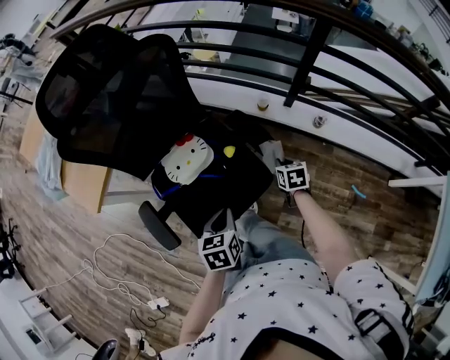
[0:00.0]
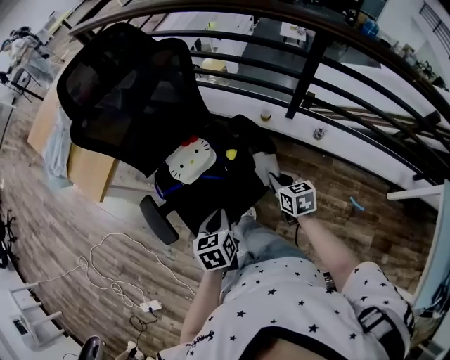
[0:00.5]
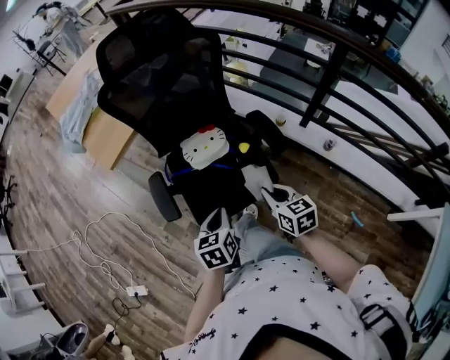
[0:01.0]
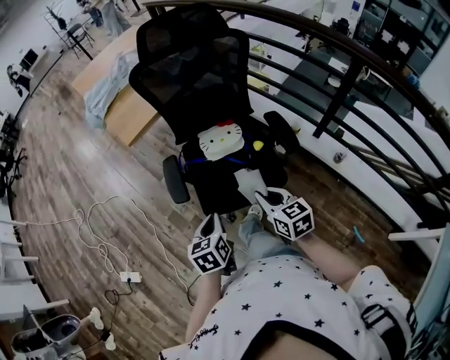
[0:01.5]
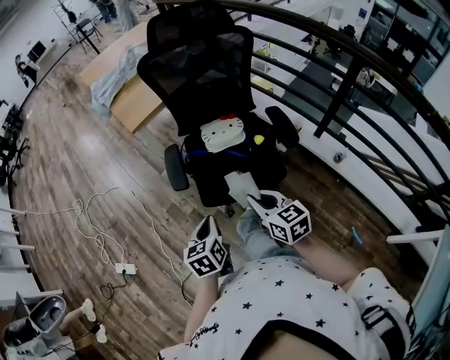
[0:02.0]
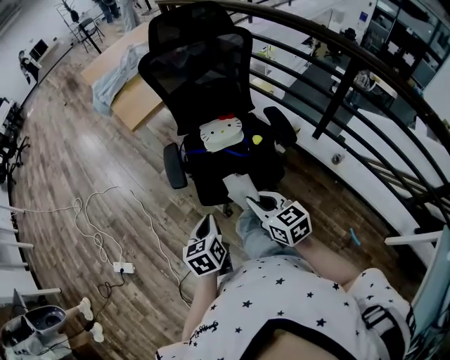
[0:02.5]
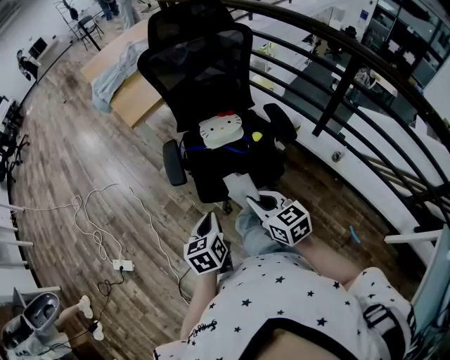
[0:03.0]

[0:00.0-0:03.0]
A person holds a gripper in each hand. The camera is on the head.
0:00.0 to 0:01.5: The left gripper shifts by about 20 cm, and swivels some 30 degrees. Meanwhile the right gripper ends up about 35 cm from where it was, and turns by approximately 50 degrees.
0:01.5 to 0:03.0: Both grippers move backward, approximately 5 cm.

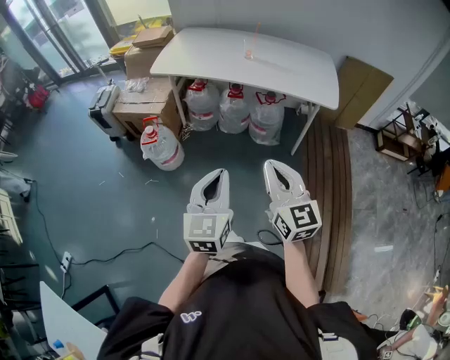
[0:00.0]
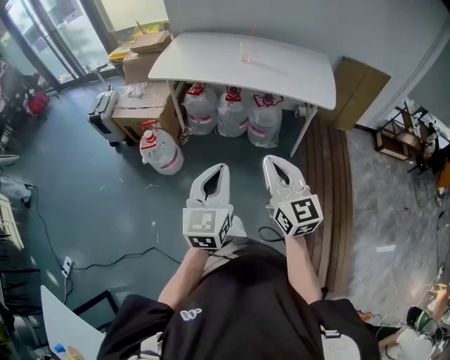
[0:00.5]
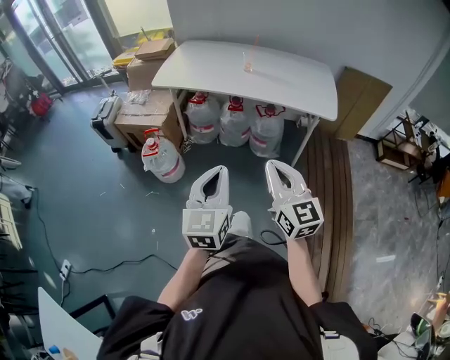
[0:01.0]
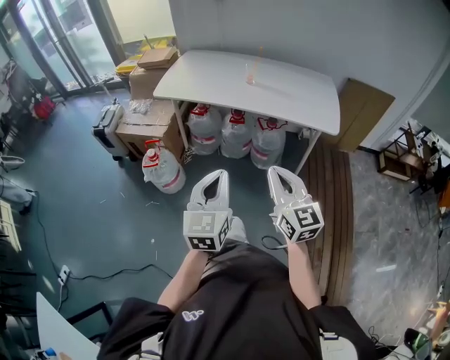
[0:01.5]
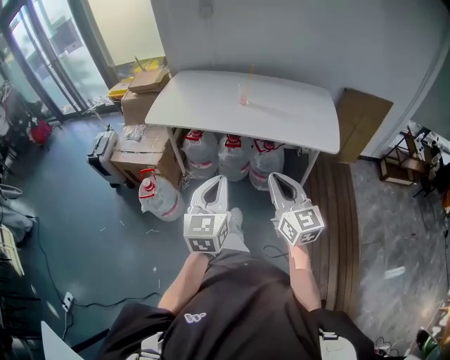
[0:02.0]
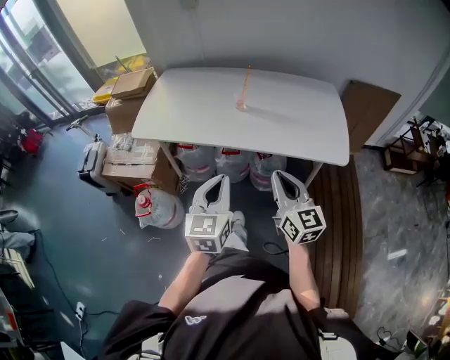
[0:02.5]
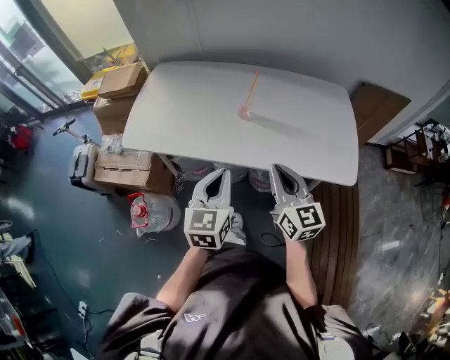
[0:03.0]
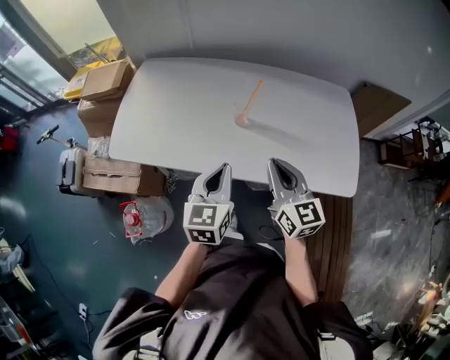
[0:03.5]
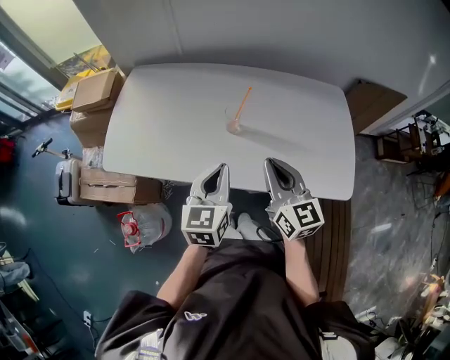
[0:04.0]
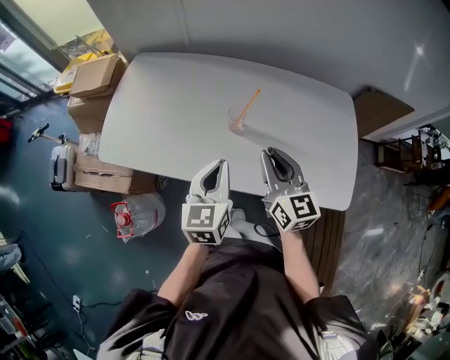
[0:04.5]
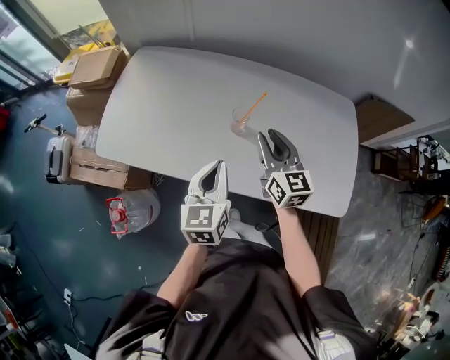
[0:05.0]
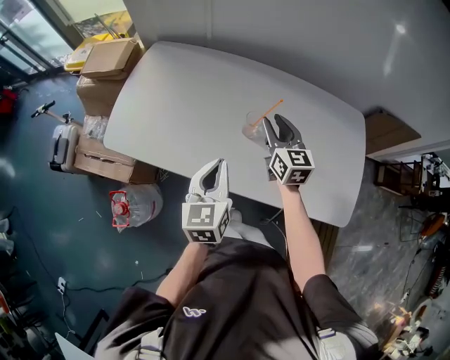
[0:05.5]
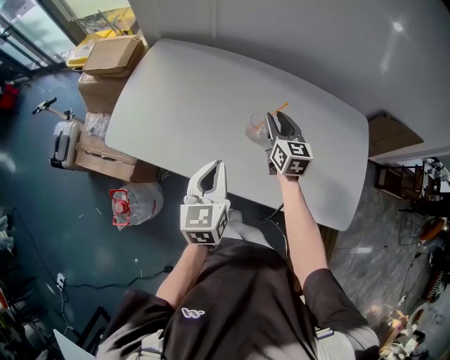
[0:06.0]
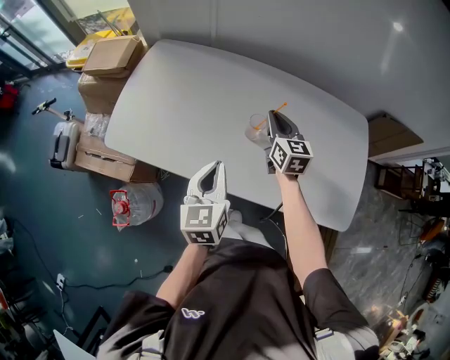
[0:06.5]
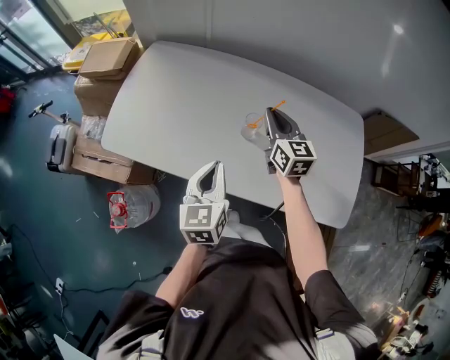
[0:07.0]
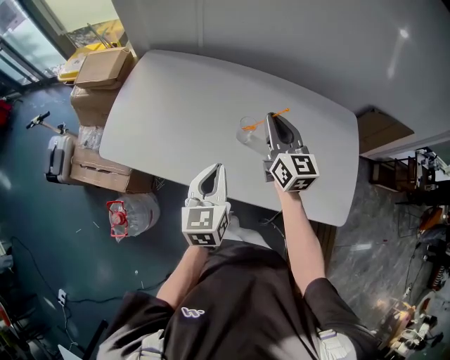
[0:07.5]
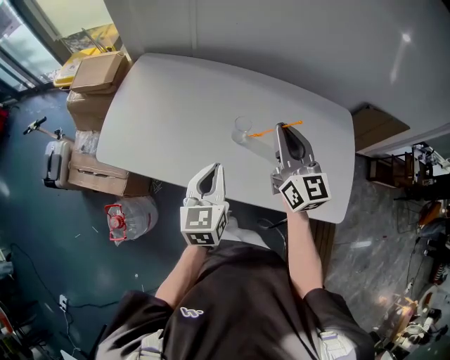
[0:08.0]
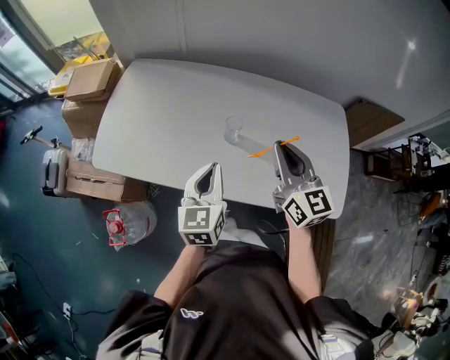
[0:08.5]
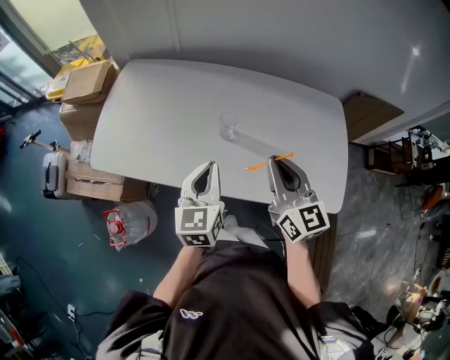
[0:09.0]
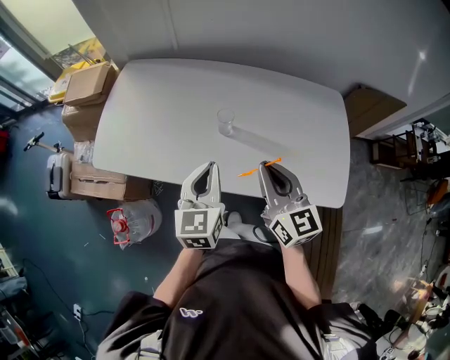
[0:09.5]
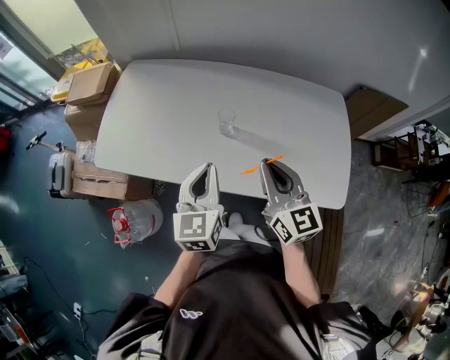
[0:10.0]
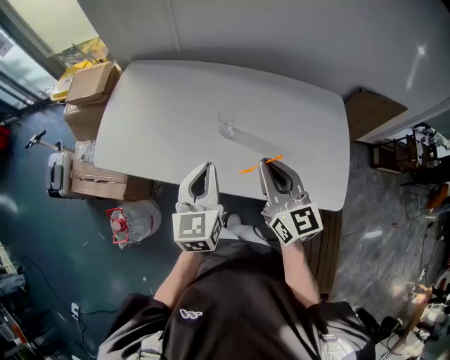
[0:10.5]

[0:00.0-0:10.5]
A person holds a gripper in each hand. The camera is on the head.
0:00.0 to 0:02.0: Both grippers travel together forward, approximately 20 cm.
0:02.0 to 0:04.0: Both grippers are carried forward, some 40 cm.
0:04.0 to 0:06.5: The right gripper goes roughly 25 cm forward and downward, and opens, then closes once more; the left gripper is displaced to the left and forward by about 10 cm.
0:06.5 to 0:08.5: The right gripper goes approximately 20 cm backward and upward.
0:08.5 to 0:10.5: The right gripper heads backward, covering about 5 cm.

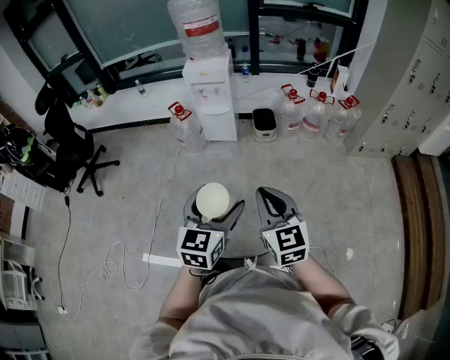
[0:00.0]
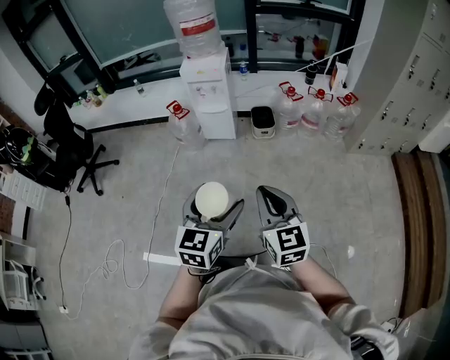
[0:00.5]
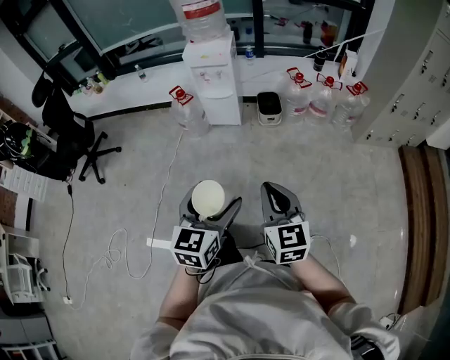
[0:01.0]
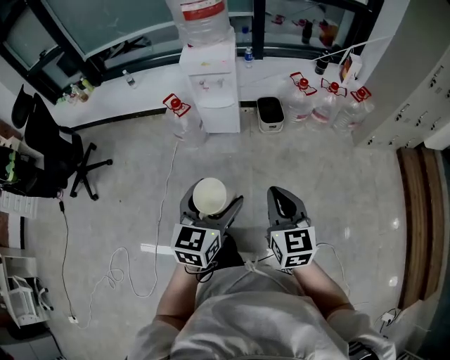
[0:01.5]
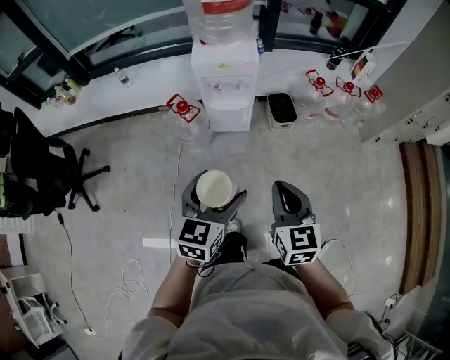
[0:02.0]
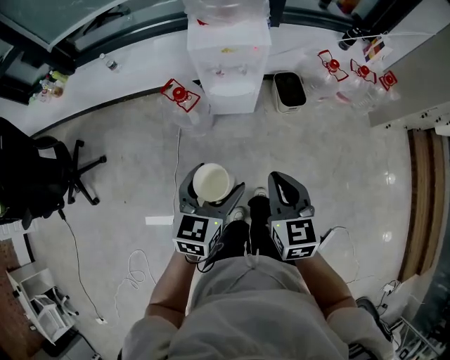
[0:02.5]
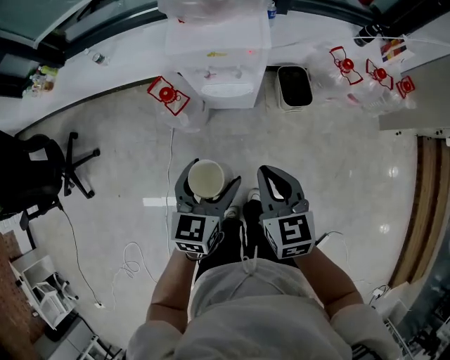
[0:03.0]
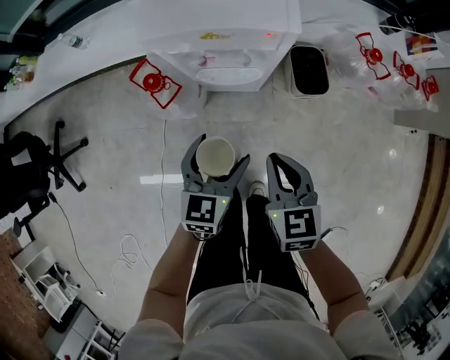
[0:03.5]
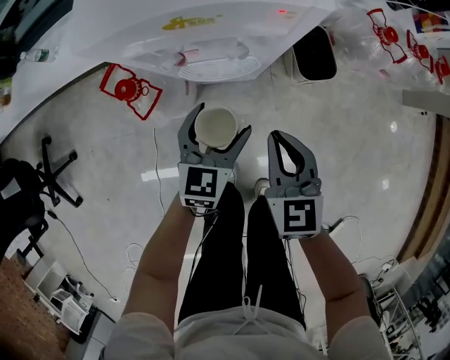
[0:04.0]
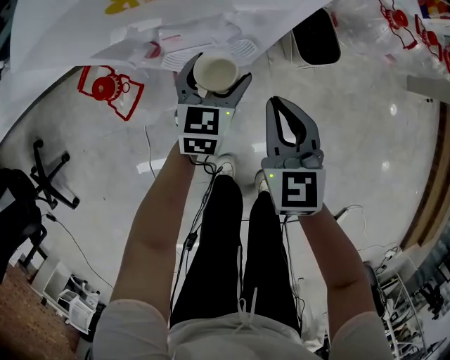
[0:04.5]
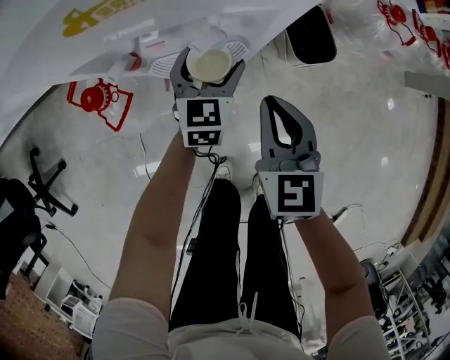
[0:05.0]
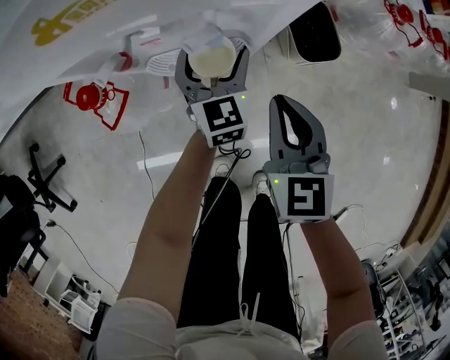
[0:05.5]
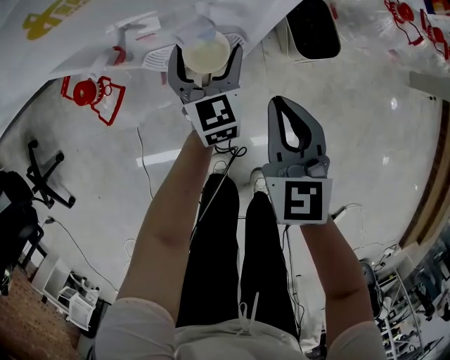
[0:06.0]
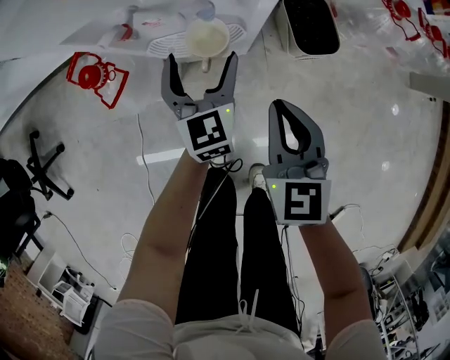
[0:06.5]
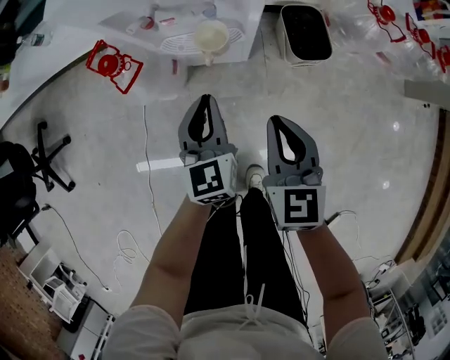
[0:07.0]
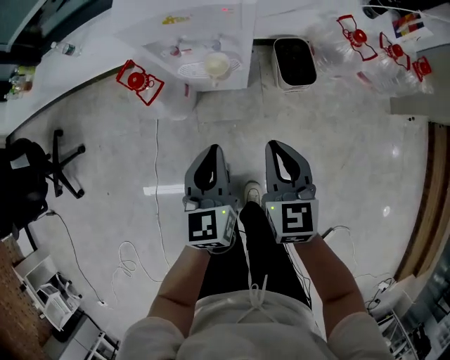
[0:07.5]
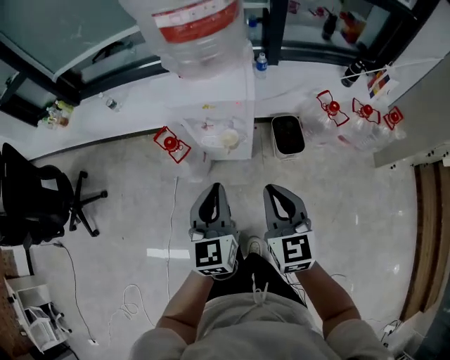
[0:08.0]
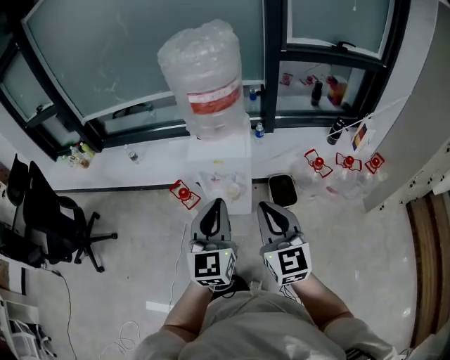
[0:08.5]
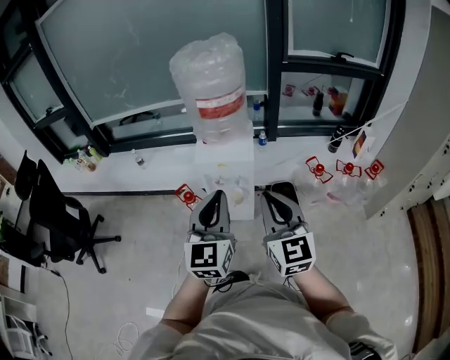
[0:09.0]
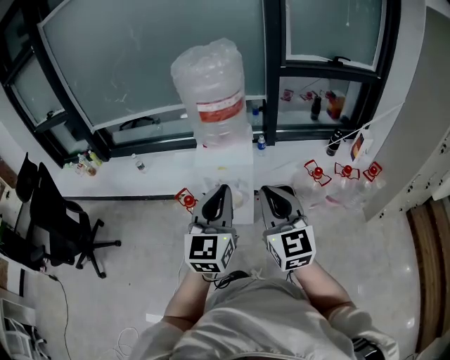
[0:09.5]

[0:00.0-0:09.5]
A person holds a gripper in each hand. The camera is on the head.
0:00.0 to 0:02.0: Both grippers travel together forward and to the left, roughly 35 cm.
0:02.0 to 0:04.0: The grippers both shift forward and downward by about 50 cm.
0:04.0 to 0:05.5: The right gripper shifts about 10 cm forward and downward. The left gripper is displaced forward and downward by roughly 15 cm, and turns by about 20 degrees.
0:05.5 to 0:07.5: The left gripper shifts about 35 cm backward and upward, and closes up; the right gripper is displaced backward and upward by some 20 cm.
0:07.5 to 0:09.5: The two grippers go some 40 cm upward. The right gripper tilts its fingers about 30 degrees upward; the left gripper rotates roughly 30 degrees.

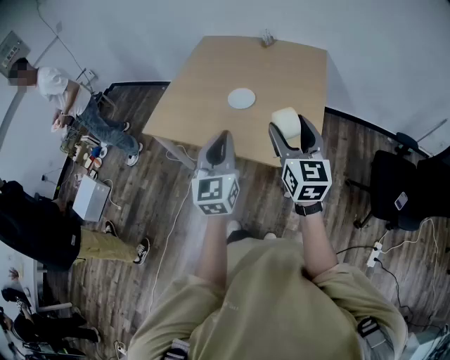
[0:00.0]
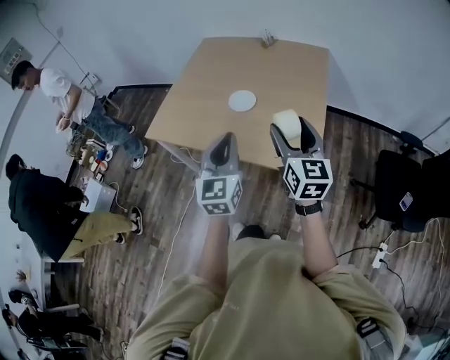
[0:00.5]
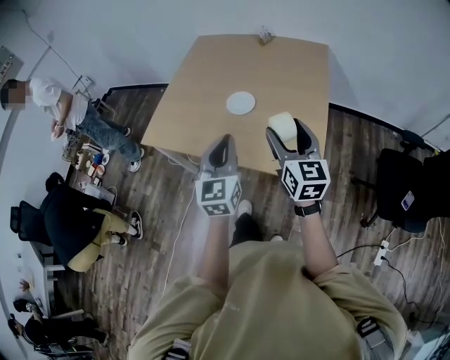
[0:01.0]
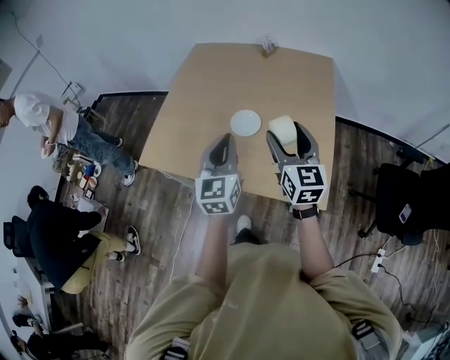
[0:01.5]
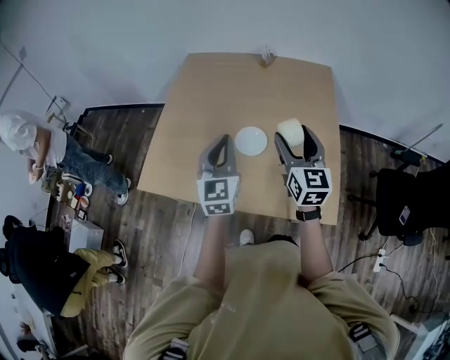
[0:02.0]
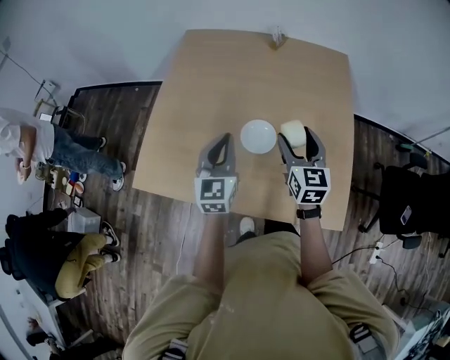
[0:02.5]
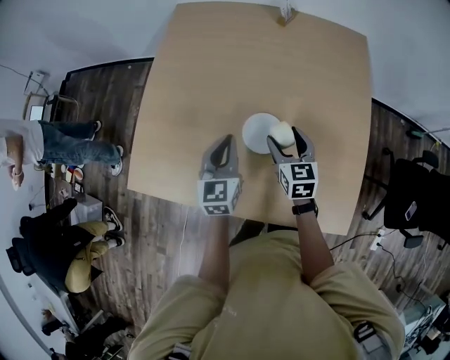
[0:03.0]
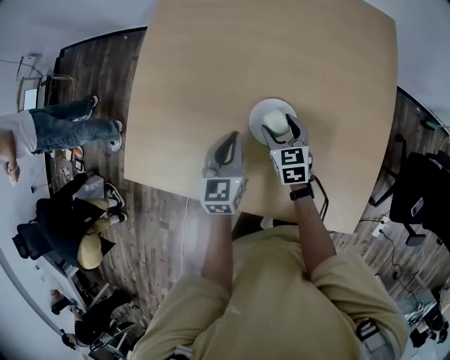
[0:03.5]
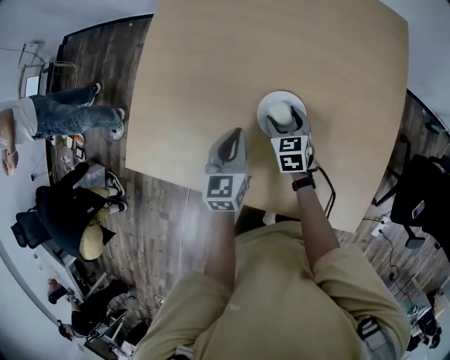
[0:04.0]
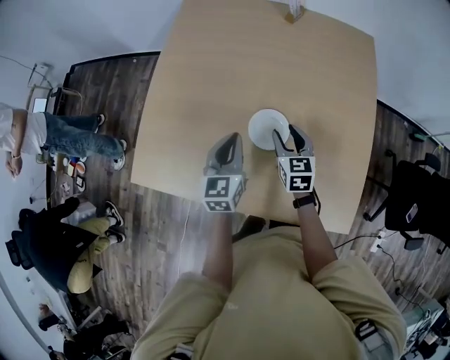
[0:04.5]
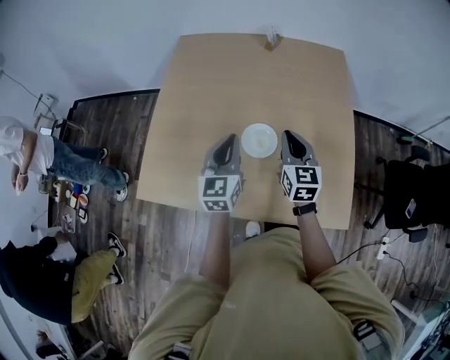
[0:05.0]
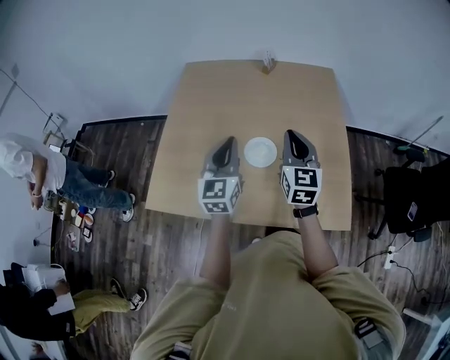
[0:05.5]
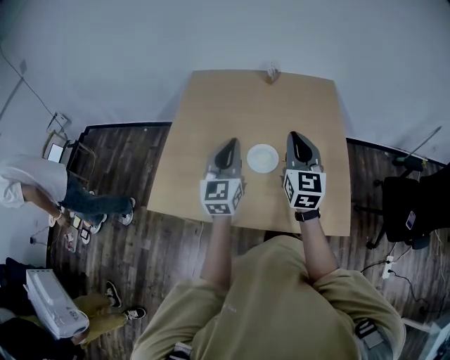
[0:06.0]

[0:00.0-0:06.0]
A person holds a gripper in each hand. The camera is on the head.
0:00.0 to 0:02.0: The two grippers go about 30 cm forward.
0:02.0 to 0:04.0: Both grippers travel together downward and forward, approximately 35 cm. The right gripper points its fingers some 40 degrees further downward; the left gripper changes its angle by about 30 degrees.
0:04.0 to 0:06.0: The grippers both shift upward and backward by approximately 35 cm. The left gripper angles its fingers upward, by some 30 degrees. Meanwhile the right gripper tips its fingers upward by about 40 degrees, and closes up.
